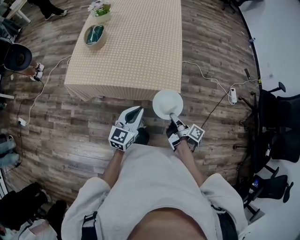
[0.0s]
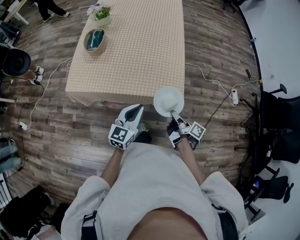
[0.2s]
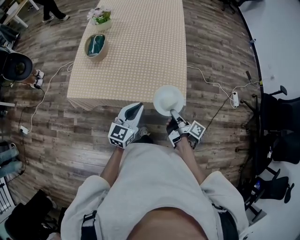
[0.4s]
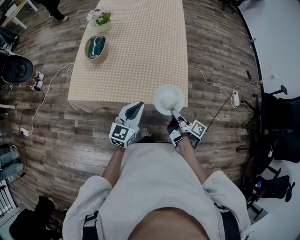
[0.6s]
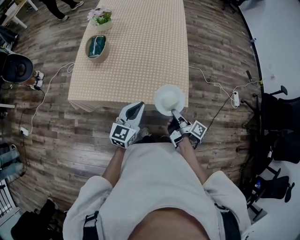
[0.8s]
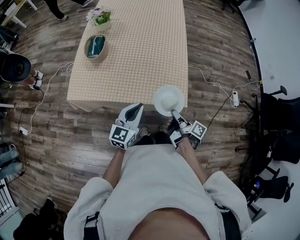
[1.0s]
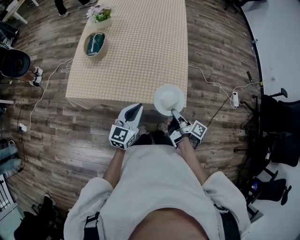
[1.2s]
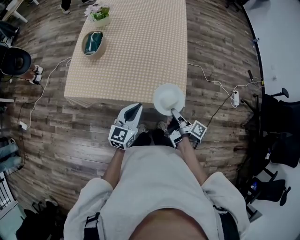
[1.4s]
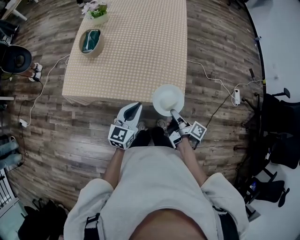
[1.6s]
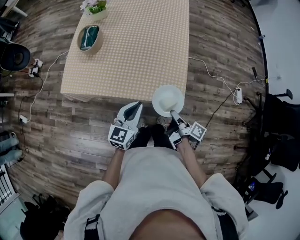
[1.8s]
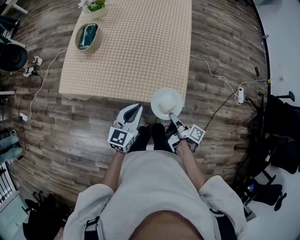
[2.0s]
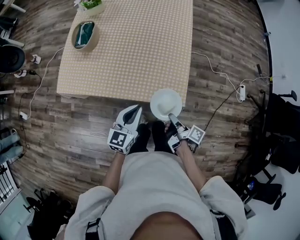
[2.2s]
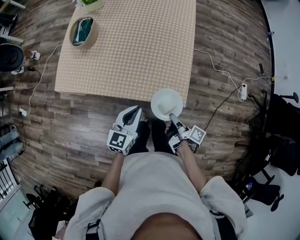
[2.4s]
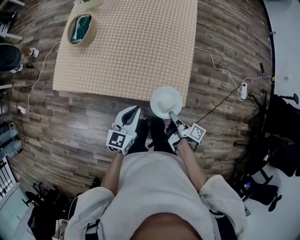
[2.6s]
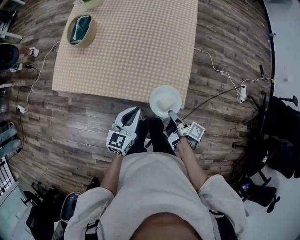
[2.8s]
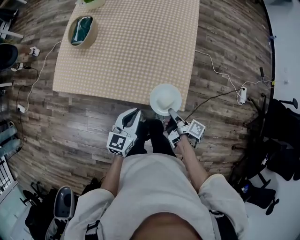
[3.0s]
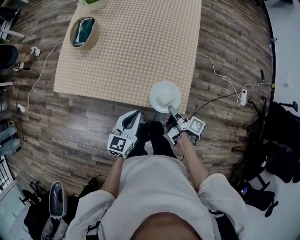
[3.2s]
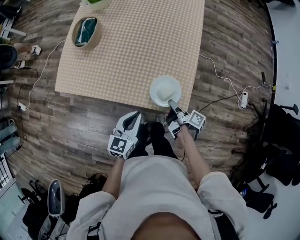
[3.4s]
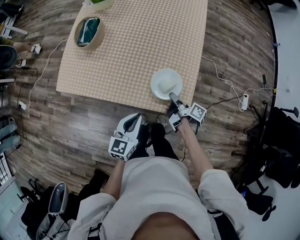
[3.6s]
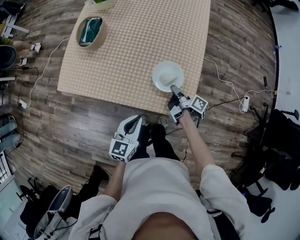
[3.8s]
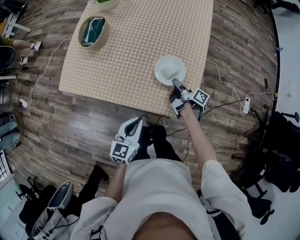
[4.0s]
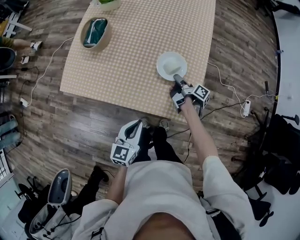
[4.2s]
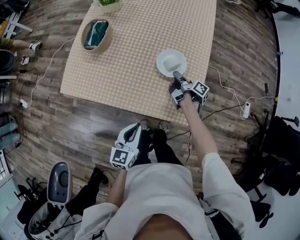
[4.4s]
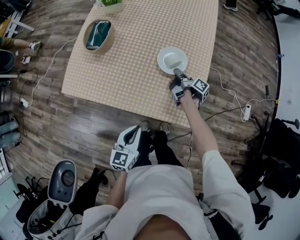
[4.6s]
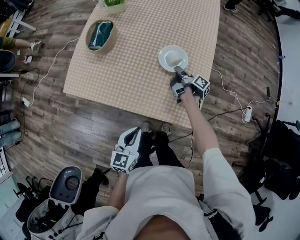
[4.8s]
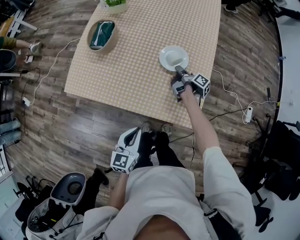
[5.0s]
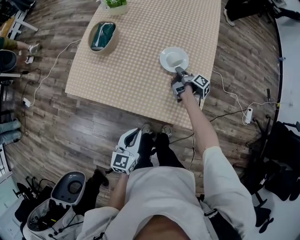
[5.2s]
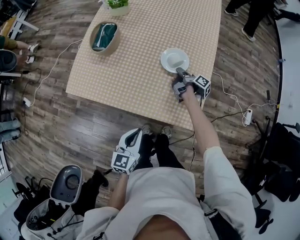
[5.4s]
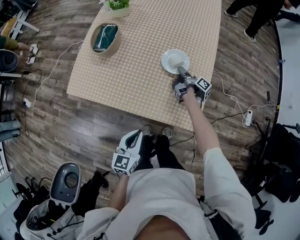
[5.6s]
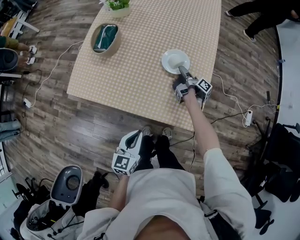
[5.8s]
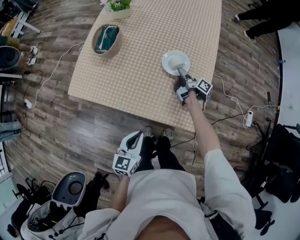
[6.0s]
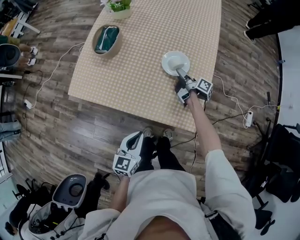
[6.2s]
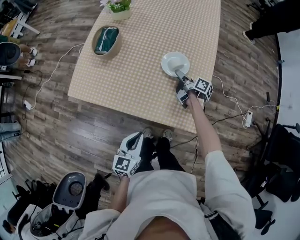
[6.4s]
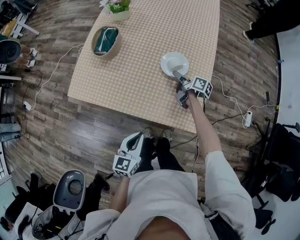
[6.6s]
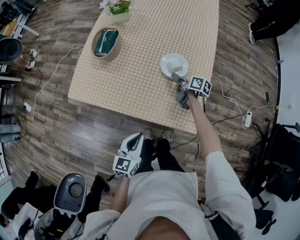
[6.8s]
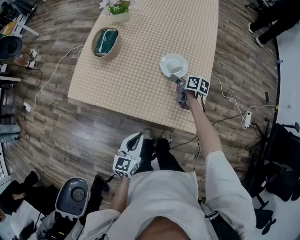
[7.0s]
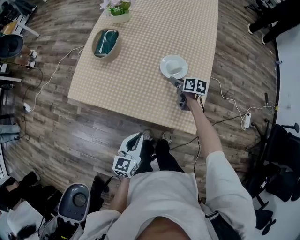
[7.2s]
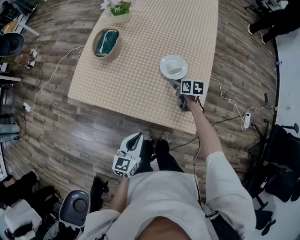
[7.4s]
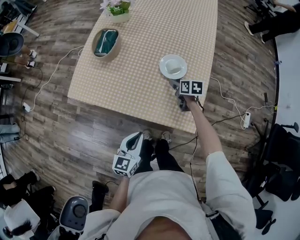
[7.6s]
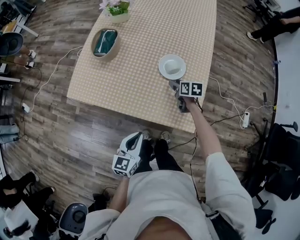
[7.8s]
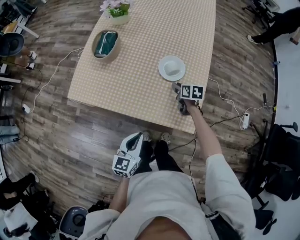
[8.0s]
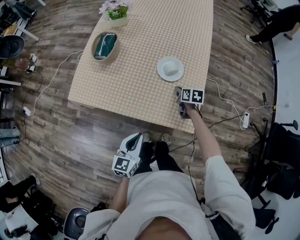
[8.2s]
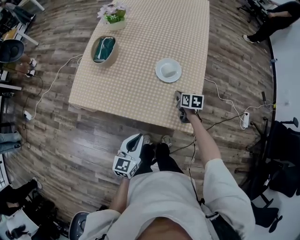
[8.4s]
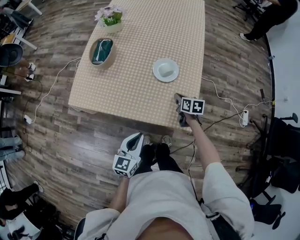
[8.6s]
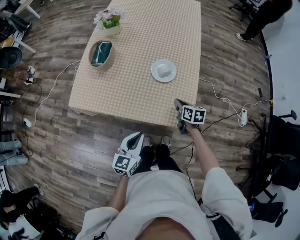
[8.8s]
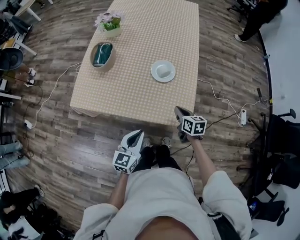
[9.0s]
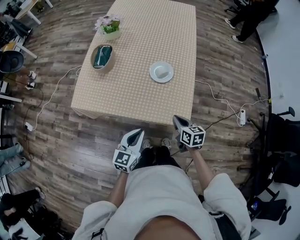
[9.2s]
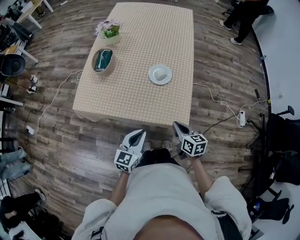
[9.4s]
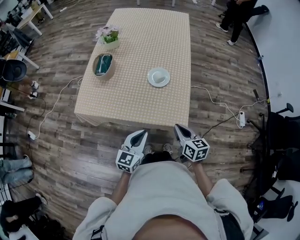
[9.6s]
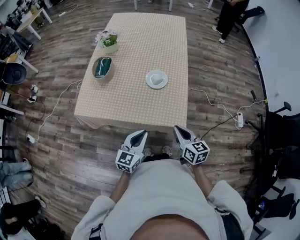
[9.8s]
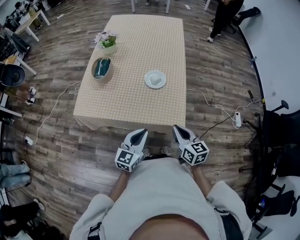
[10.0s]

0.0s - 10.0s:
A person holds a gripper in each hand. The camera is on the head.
0.0s - 1.4s: The left gripper moves approximately 10 cm.
1.4s - 2.8s: The left gripper travels downward by approximately 10 cm.
8.6s - 10.0s: The left gripper moves upward, about 10 cm.

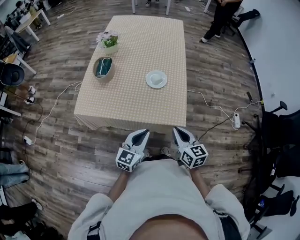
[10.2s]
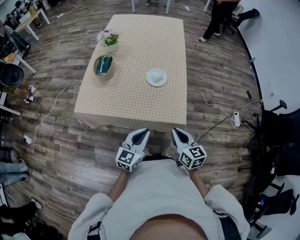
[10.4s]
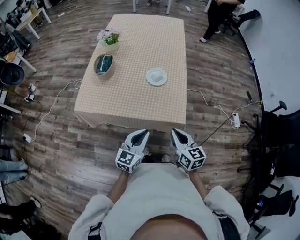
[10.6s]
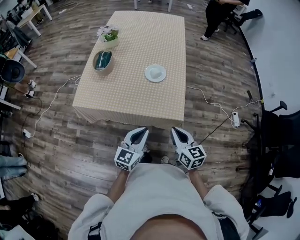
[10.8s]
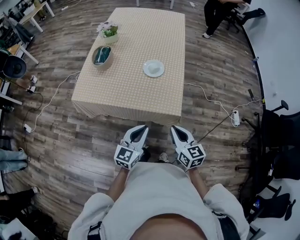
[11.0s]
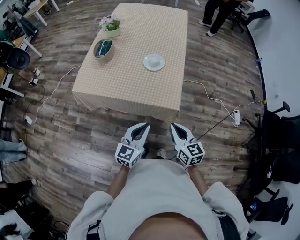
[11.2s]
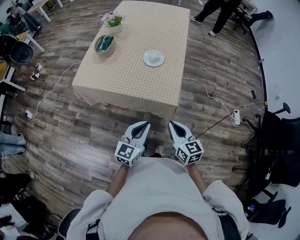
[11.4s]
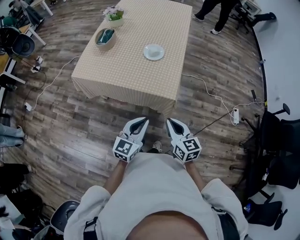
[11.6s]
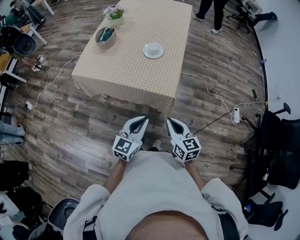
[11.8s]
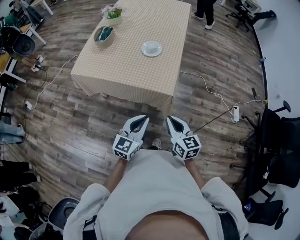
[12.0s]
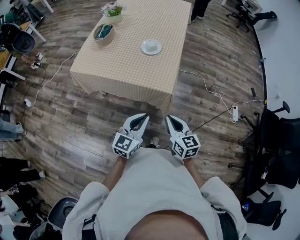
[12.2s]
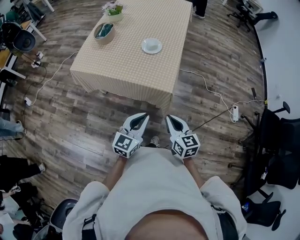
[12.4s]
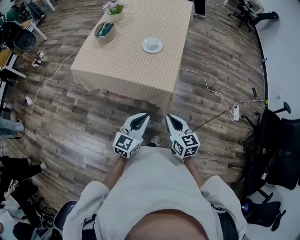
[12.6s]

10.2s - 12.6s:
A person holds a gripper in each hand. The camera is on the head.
10.2s - 11.4s: The left gripper ends up roughly 15 cm from where it was.
11.4s - 12.6s: The left gripper ends up about 5 cm from where it was.

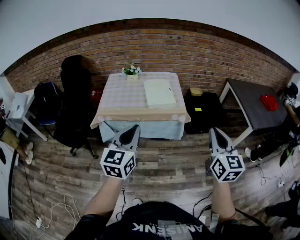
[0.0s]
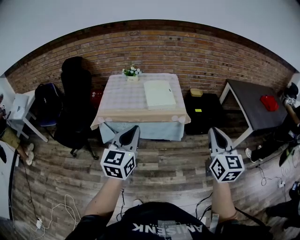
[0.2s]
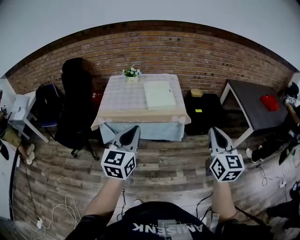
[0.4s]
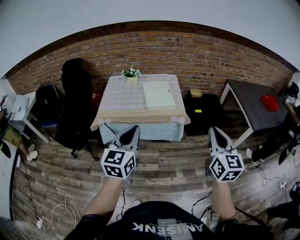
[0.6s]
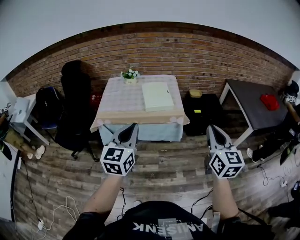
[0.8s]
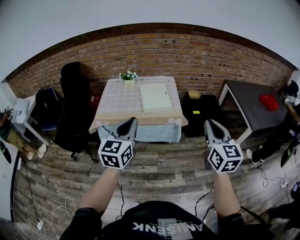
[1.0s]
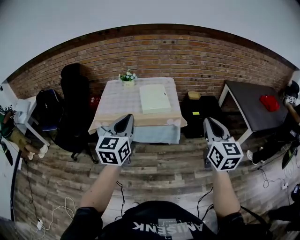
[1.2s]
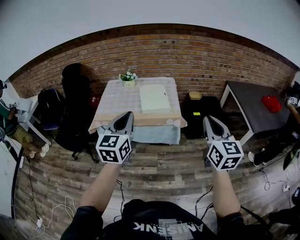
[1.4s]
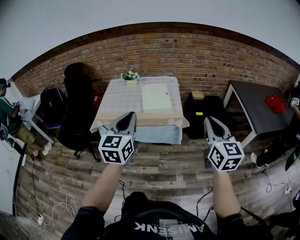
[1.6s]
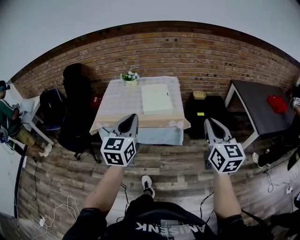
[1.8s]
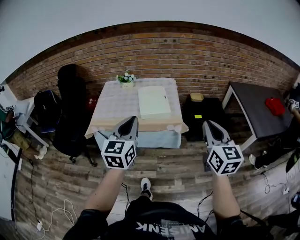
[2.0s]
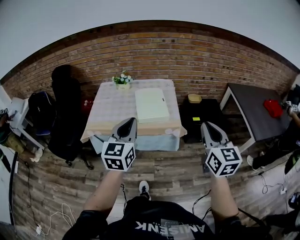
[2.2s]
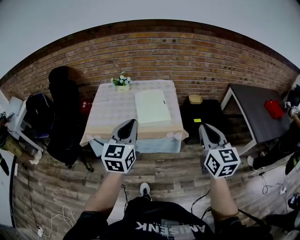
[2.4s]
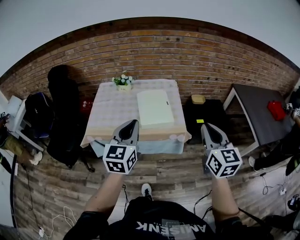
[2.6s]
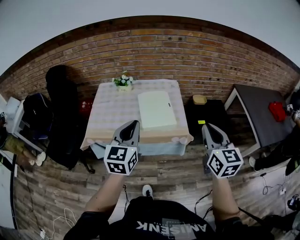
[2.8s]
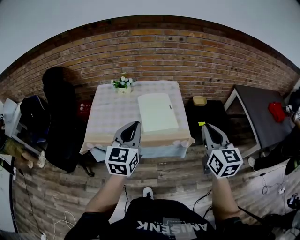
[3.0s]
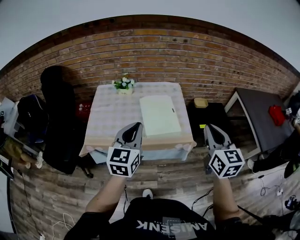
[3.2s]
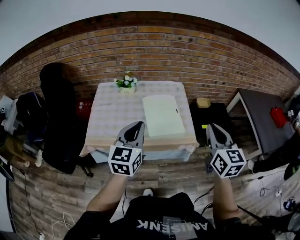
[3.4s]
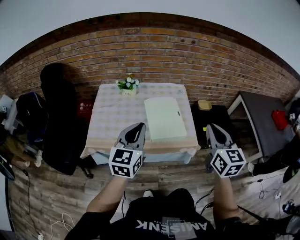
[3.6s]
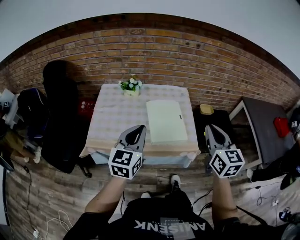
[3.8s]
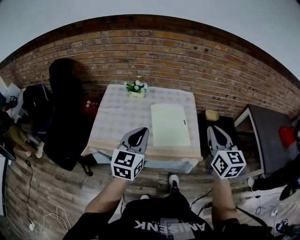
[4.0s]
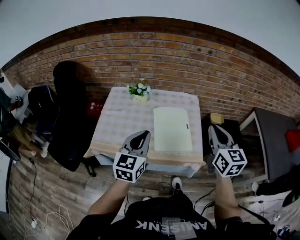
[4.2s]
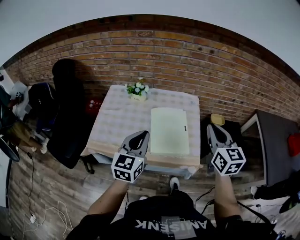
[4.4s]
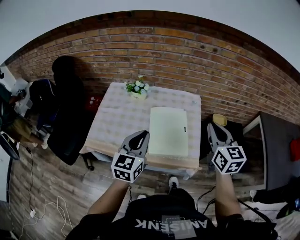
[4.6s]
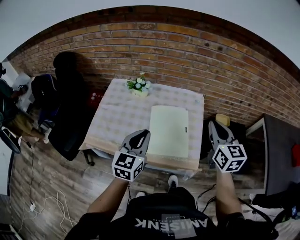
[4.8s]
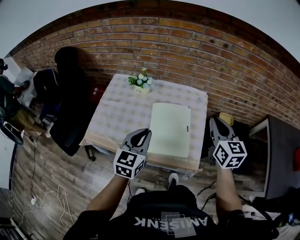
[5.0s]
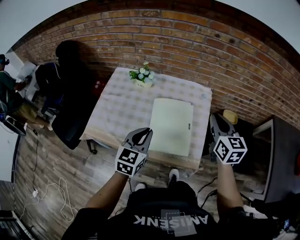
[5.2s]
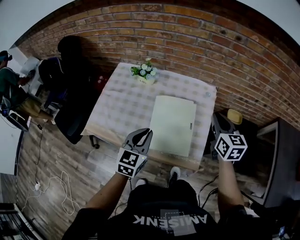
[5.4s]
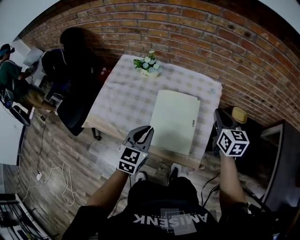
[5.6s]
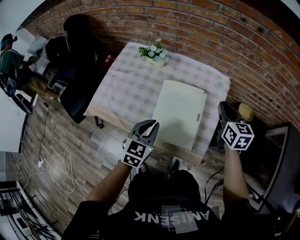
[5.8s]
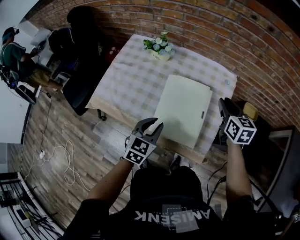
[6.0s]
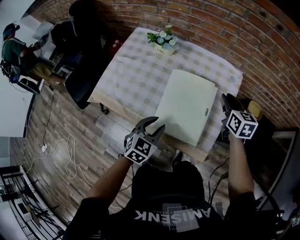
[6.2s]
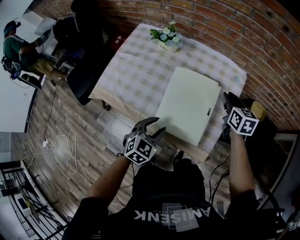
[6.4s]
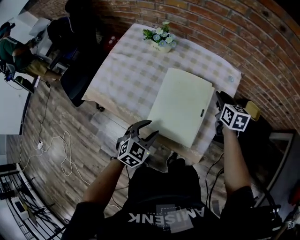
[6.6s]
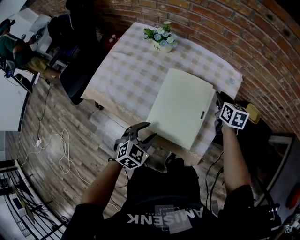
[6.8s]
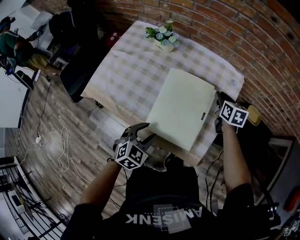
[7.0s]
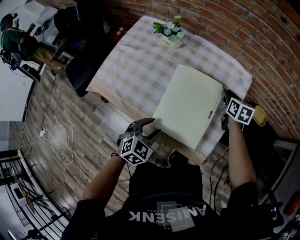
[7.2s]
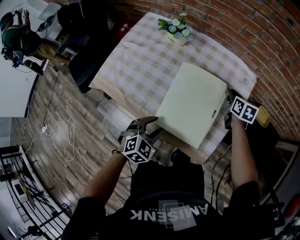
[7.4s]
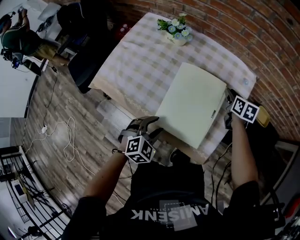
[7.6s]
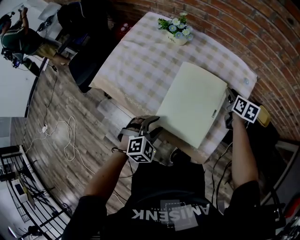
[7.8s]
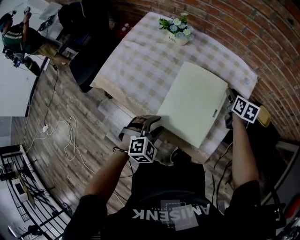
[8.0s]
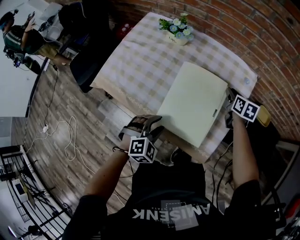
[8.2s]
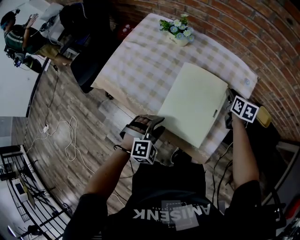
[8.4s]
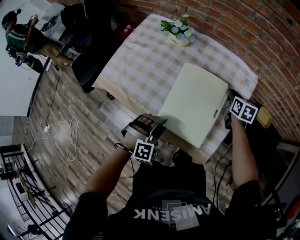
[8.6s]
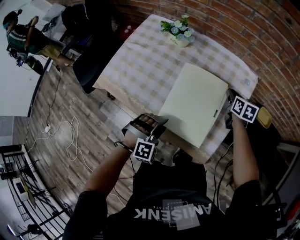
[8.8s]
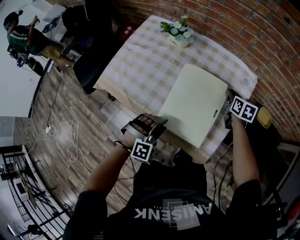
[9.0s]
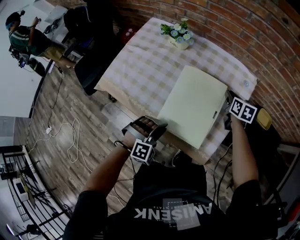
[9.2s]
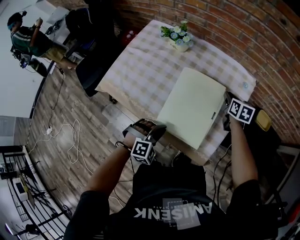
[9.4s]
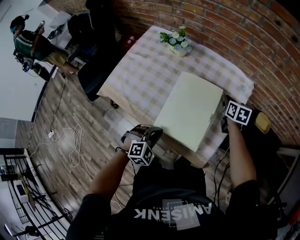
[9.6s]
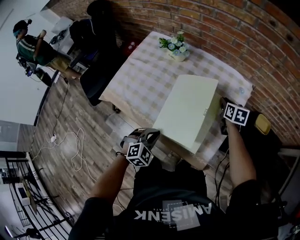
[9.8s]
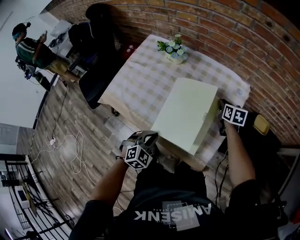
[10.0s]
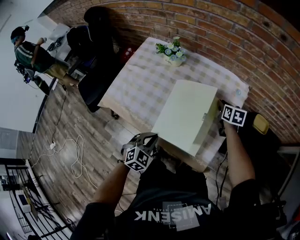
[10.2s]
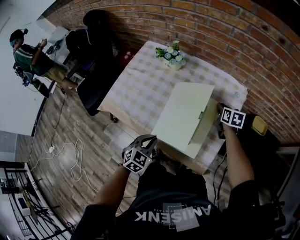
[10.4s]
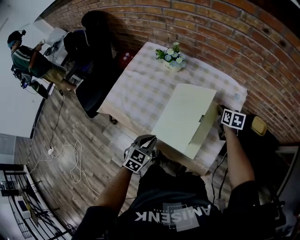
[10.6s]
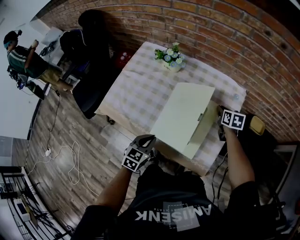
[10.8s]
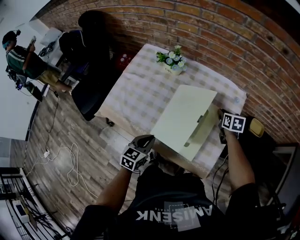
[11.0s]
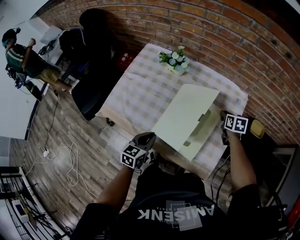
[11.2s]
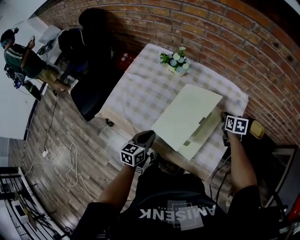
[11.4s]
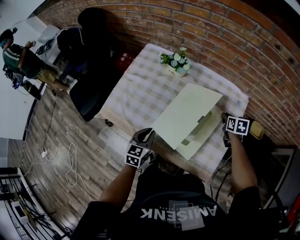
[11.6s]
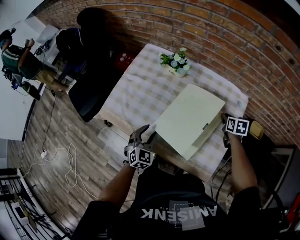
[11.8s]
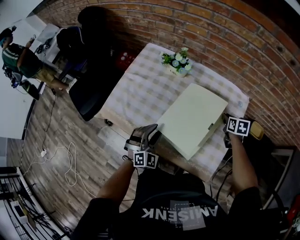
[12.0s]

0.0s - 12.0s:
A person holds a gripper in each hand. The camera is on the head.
0.0s - 1.6s: The grippers both shift to the right and forward by some 10 cm.
1.6s - 3.0s: The grippers both shift forward by approximately 25 cm.
3.0s - 4.4s: The left gripper travels forward by about 15 cm; the right gripper is displaced forward by roughly 20 cm.
4.4s - 6.0s: The left gripper travels downward by approximately 20 cm, and rotates about 30 degrees, while the right gripper heads forward and downward, covering roughly 30 cm, changes its angle by roughly 30 degrees, and opens.
6.0s - 7.6s: The right gripper shifts some 20 cm downward and forward. The left gripper is displaced downward by about 10 cm, rotates some 30 degrees, and opens.
7.6s - 9.0s: The left gripper swivels some 40 degrees.
9.0s - 10.4s: The left gripper rotates around the line of its fingers by about 50 degrees, counterclockwise from behind, and closes its fingers.
10.4s - 12.0s: The left gripper shifts about 10 cm forward, turns by roughly 30 degrees, and opens.
